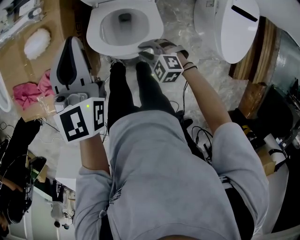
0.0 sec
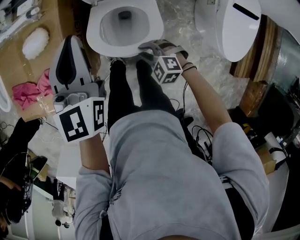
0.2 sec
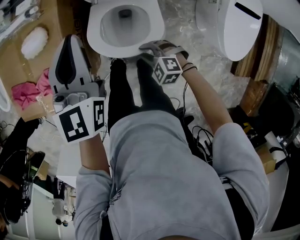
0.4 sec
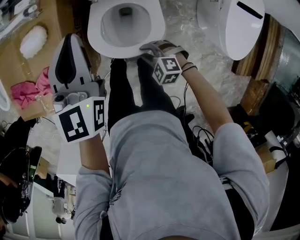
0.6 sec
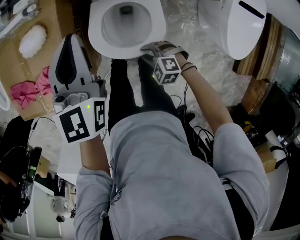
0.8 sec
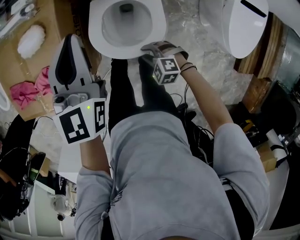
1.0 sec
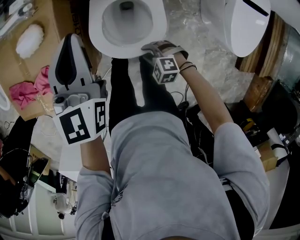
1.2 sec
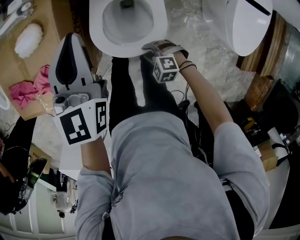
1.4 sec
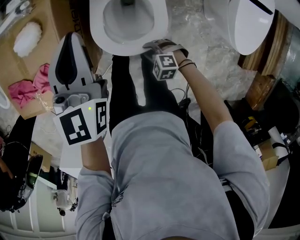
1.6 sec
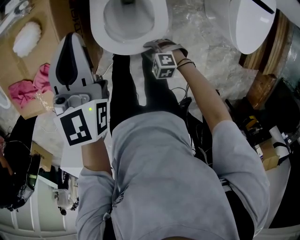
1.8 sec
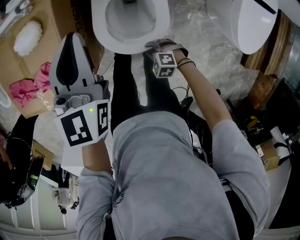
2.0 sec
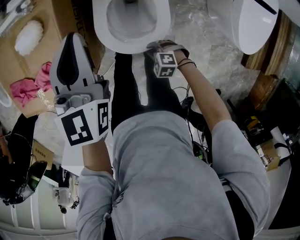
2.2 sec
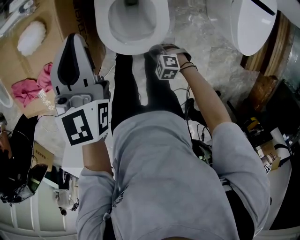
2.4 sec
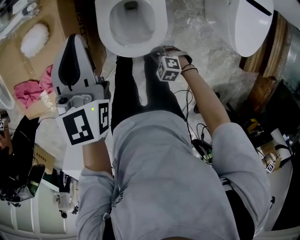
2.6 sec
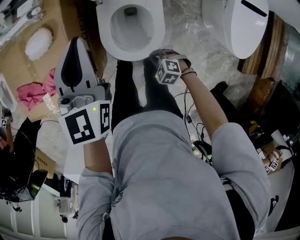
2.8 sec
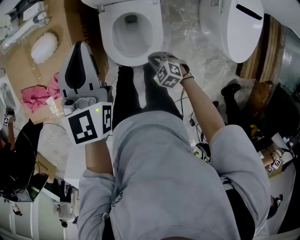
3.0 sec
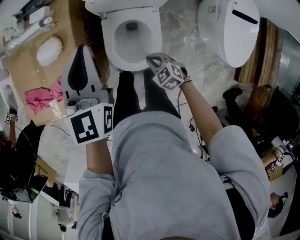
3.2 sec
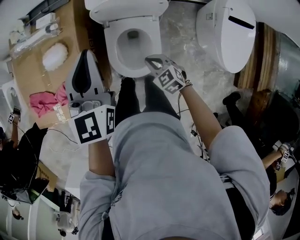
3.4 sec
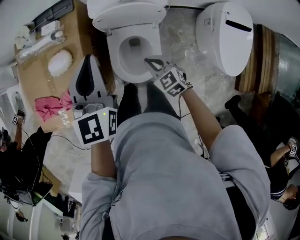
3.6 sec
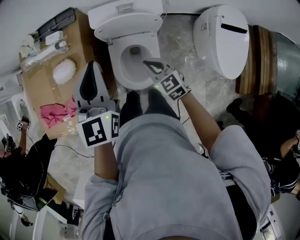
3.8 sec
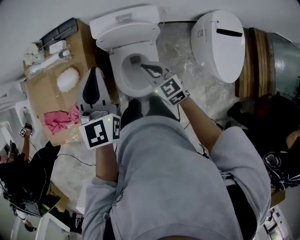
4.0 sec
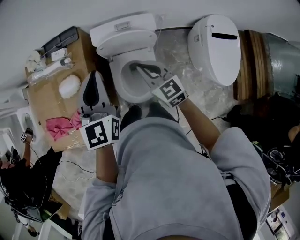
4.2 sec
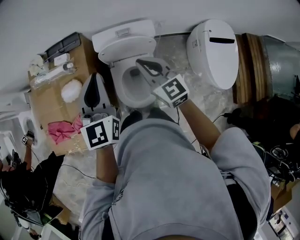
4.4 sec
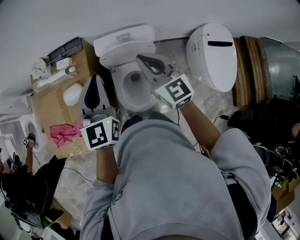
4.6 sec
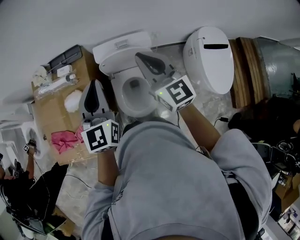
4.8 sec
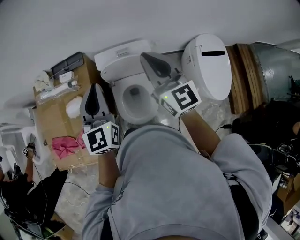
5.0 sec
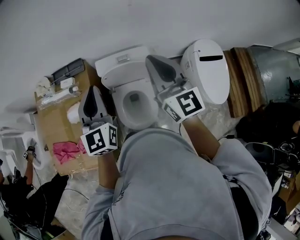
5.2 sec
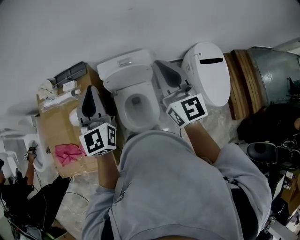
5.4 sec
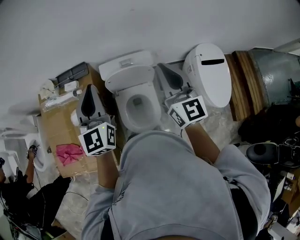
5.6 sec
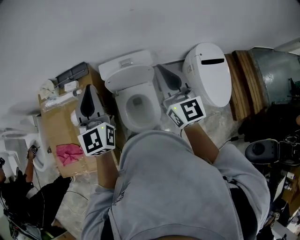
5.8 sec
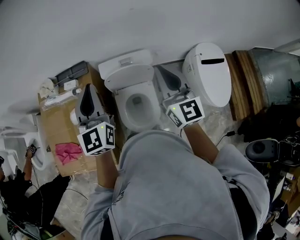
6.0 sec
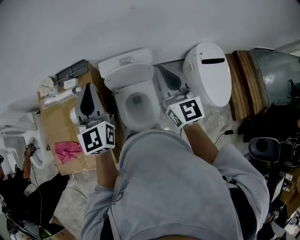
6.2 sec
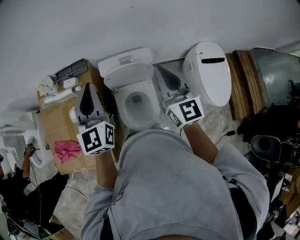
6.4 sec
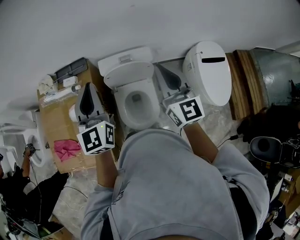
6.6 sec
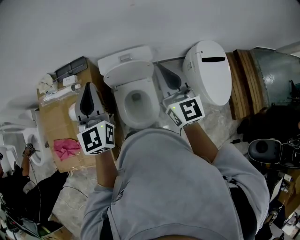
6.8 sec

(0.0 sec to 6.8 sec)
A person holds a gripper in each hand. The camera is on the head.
0.0 sec - 1.4 sec: The right gripper goes about 15 cm downward and backward. Meanwhile the left gripper goes approximately 5 cm downward.
1.4 sec - 2.8 sec: The right gripper closes.
2.8 sec - 4.0 sec: The right gripper shifts some 35 cm upward and forward, and angles its fingers upward, by approximately 40 degrees, while the left gripper goes roughly 15 cm upward.
4.0 sec - 5.4 sec: The left gripper shifts about 10 cm upward. The right gripper travels upward by some 30 cm, and points its fingers roughly 40 degrees further upward.
5.4 sec - 6.8 sec: The grippers move only a little.

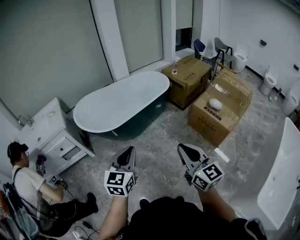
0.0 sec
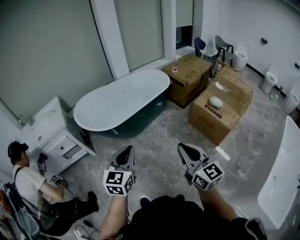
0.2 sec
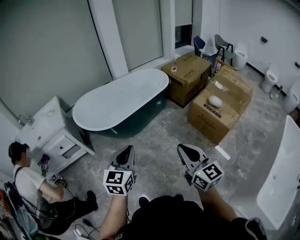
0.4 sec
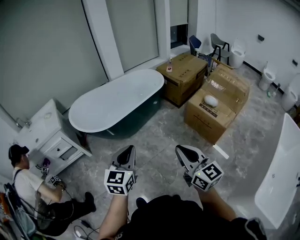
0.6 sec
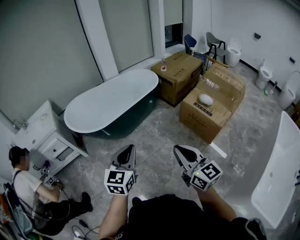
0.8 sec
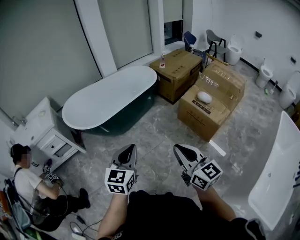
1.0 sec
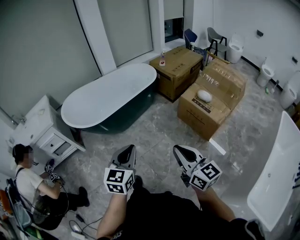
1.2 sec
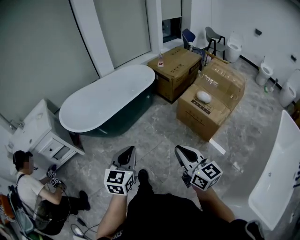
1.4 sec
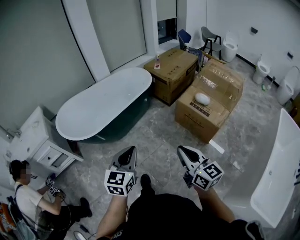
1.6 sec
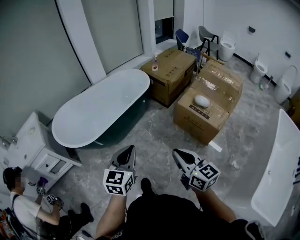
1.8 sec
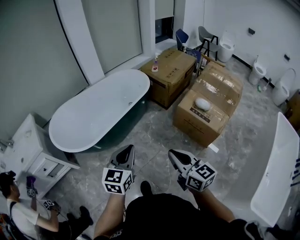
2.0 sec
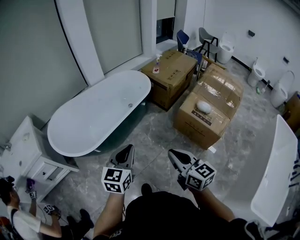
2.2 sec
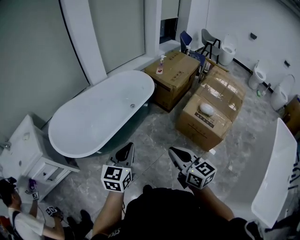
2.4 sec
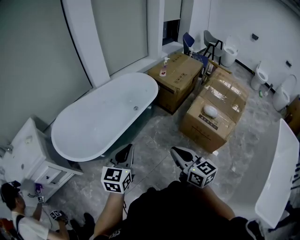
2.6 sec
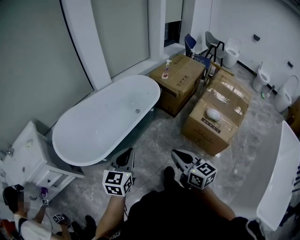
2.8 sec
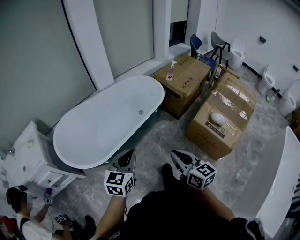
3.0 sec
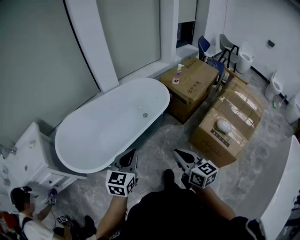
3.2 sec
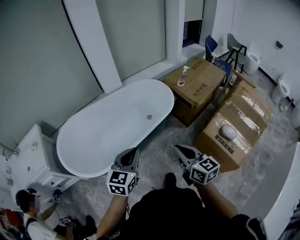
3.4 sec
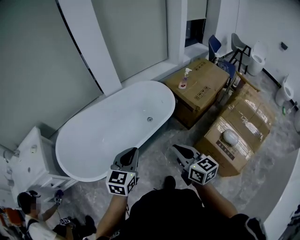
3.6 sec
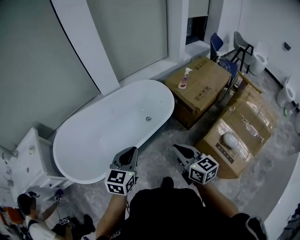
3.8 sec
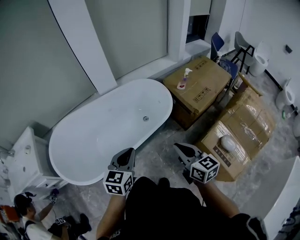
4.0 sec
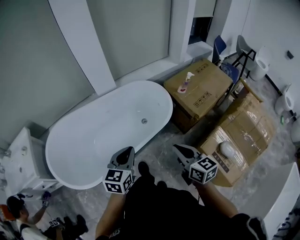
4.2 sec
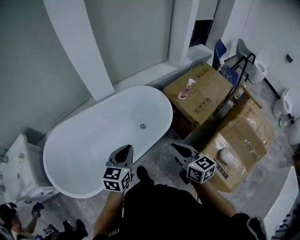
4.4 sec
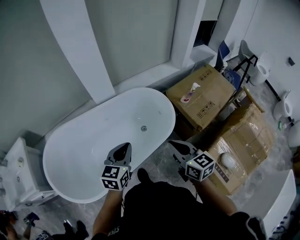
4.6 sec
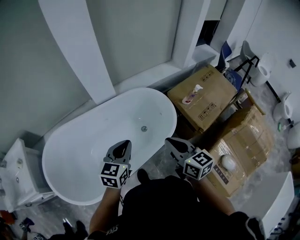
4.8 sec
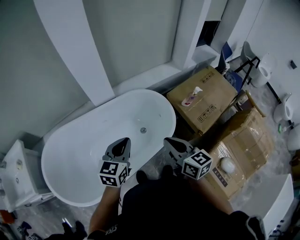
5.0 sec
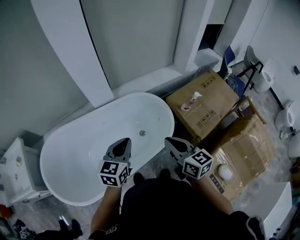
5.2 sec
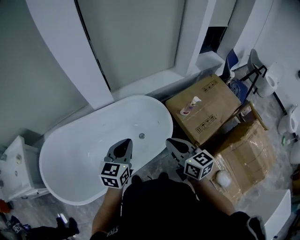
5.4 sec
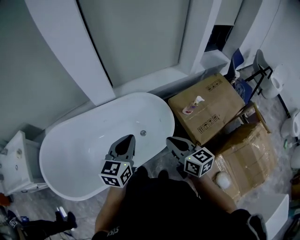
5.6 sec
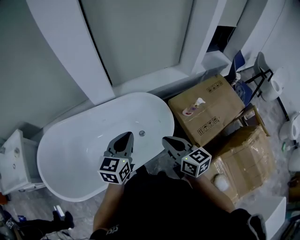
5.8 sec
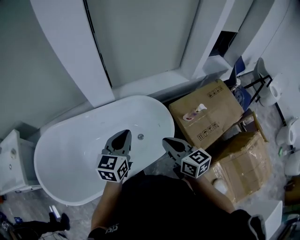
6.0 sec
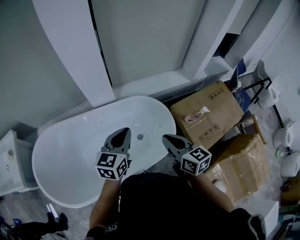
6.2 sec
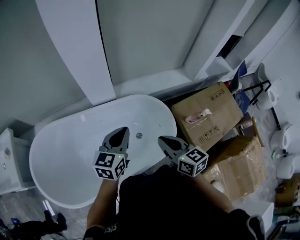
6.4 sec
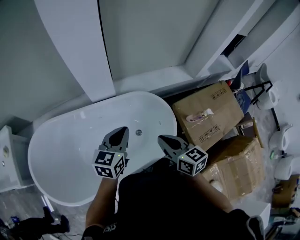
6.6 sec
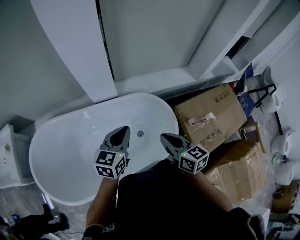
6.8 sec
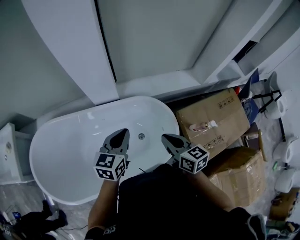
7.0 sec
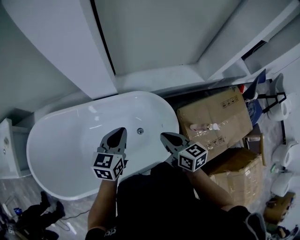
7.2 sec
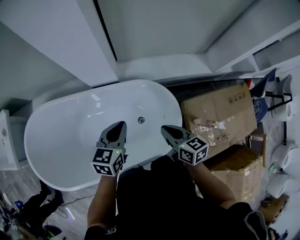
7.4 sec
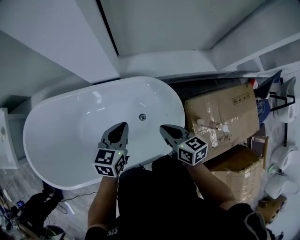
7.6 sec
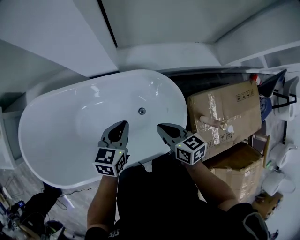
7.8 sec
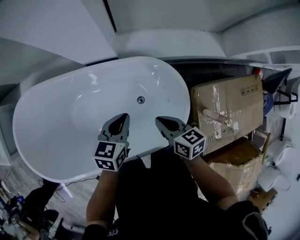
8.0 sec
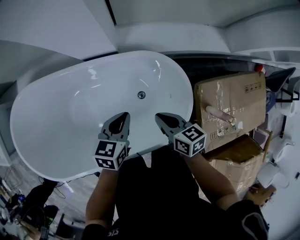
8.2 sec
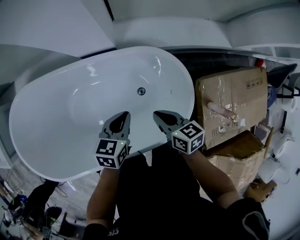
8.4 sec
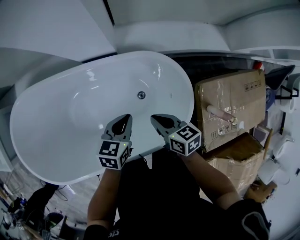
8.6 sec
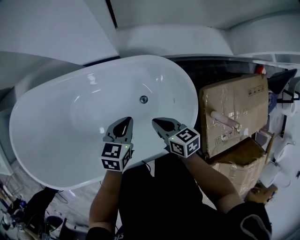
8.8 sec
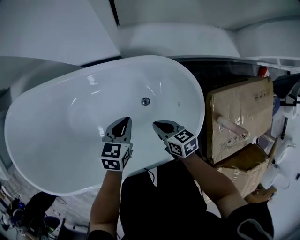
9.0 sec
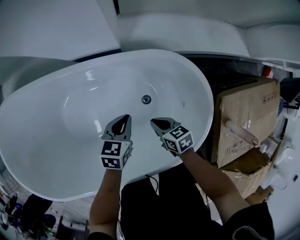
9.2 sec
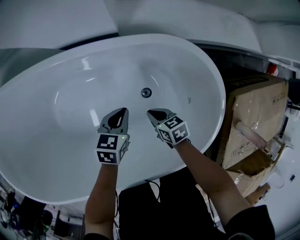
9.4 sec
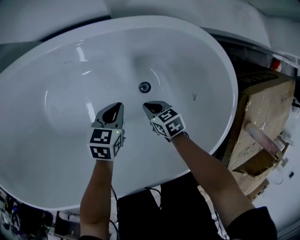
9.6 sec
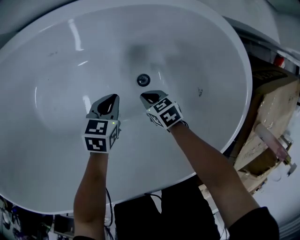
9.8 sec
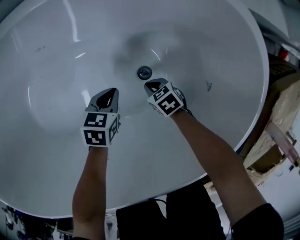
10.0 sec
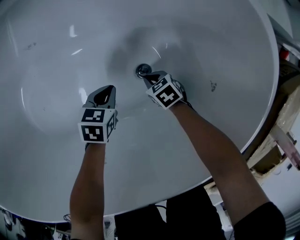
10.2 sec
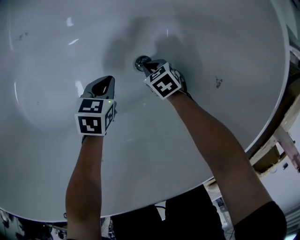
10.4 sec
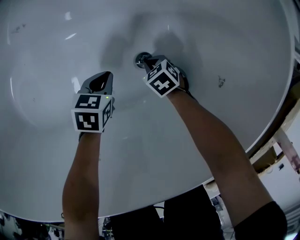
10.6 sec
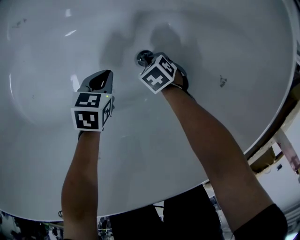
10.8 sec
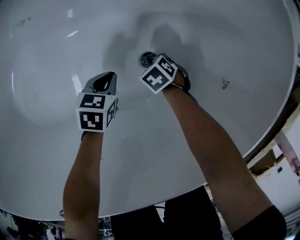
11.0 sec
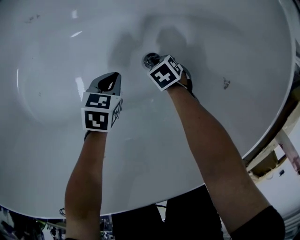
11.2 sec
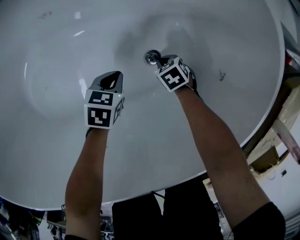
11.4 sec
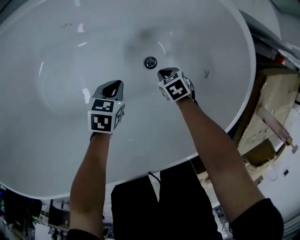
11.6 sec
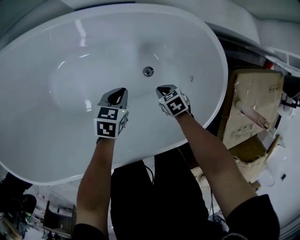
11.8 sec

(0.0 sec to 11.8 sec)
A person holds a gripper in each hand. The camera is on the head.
0.0 sec - 1.4 sec: Both grippers travel together to the right, roughly 15 cm.
1.4 sec - 3.0 sec: The right gripper shifts roughly 35 cm forward and to the left, while the left gripper goes about 35 cm forward.
3.0 sec - 4.4 sec: The two grippers go some 40 cm forward.
4.4 sec - 6.0 sec: The two grippers go about 25 cm forward.
6.0 sec - 7.4 sec: The grippers both shift forward and downward by roughly 25 cm. The right gripper rotates approximately 20 degrees.
7.4 sec - 8.8 sec: Both grippers travel together downward, approximately 20 cm.
8.8 sec - 10.4 sec: Both grippers travel together downward, roughly 50 cm. The right gripper angles its fingers downward, by about 30 degrees.
10.4 sec - 11.8 sec: The two grippers go roughly 25 cm upward.

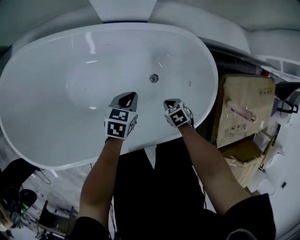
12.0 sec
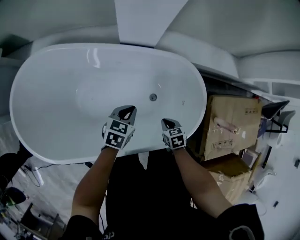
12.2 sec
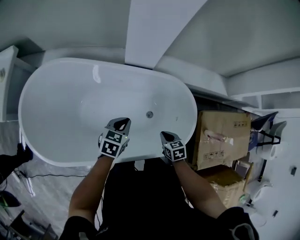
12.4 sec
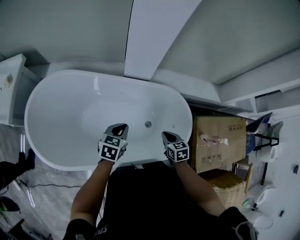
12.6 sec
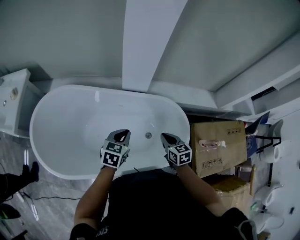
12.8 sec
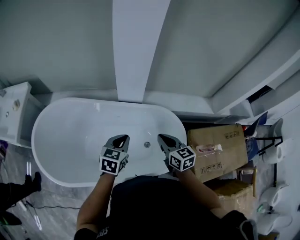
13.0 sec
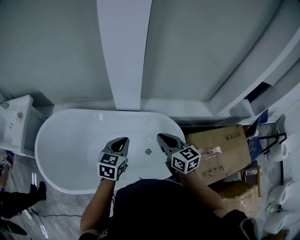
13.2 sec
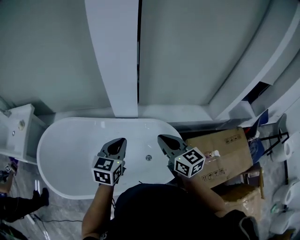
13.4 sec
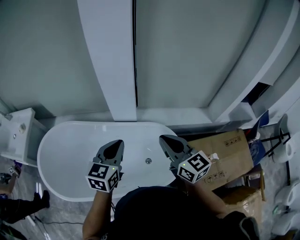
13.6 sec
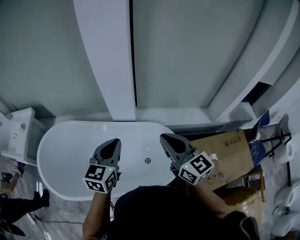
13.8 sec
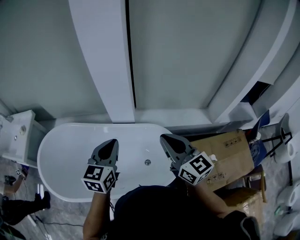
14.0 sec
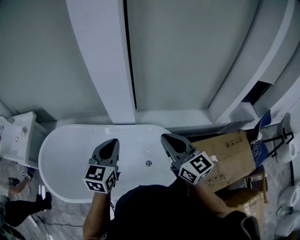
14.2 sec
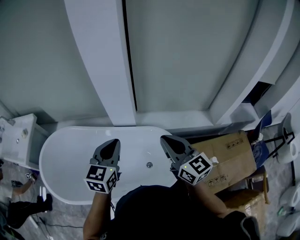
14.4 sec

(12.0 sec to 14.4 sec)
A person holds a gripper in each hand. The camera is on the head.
12.0 sec - 13.2 sec: The two grippers go roughly 50 cm upward. The right gripper points its fingers roughly 60 degrees further upward, while the left gripper turns by approximately 30 degrees.
13.2 sec - 14.4 sec: Both grippers travel together upward and to the right, approximately 15 cm.

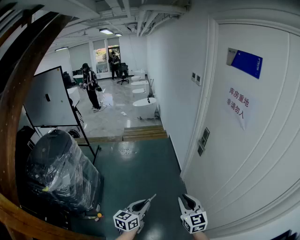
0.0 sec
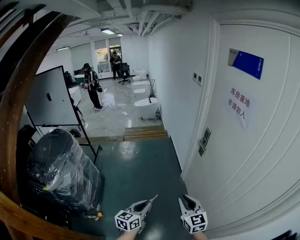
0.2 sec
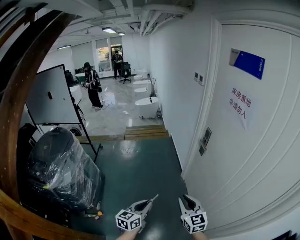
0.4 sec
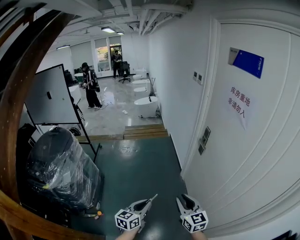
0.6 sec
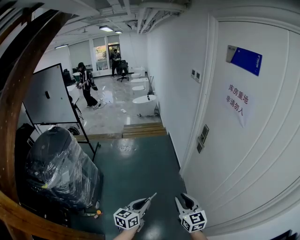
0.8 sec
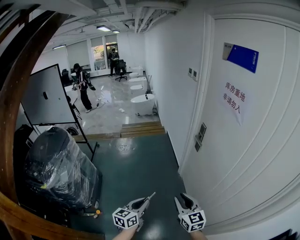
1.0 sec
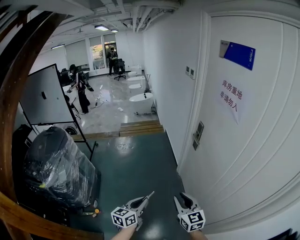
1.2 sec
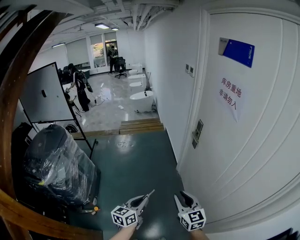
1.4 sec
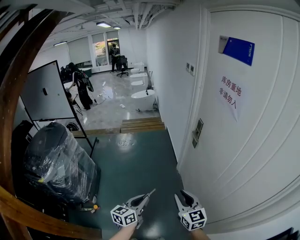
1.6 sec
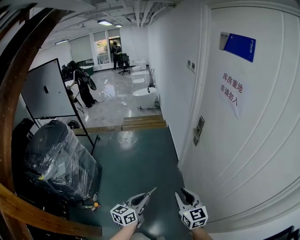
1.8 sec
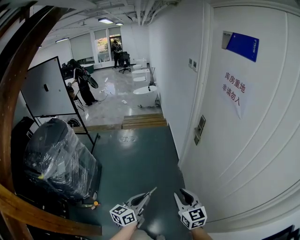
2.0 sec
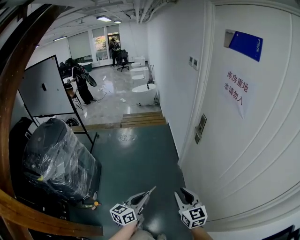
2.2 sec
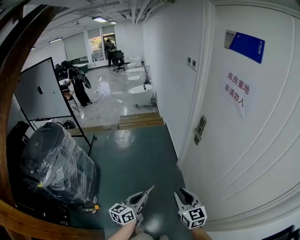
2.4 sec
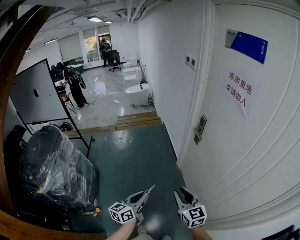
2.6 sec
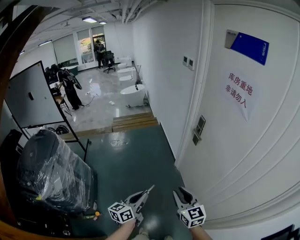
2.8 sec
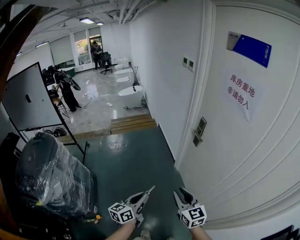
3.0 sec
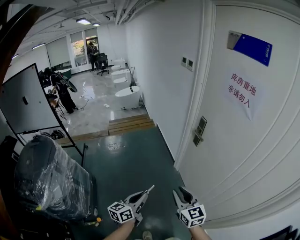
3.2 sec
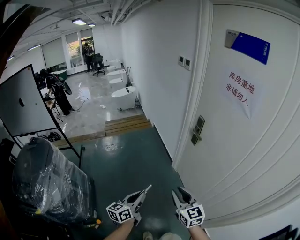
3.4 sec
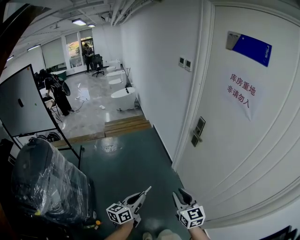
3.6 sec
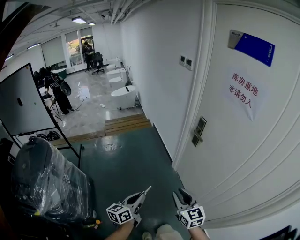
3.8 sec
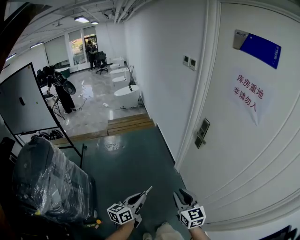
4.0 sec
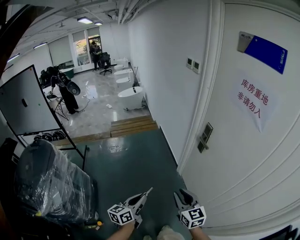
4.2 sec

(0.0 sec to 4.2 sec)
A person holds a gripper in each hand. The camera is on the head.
0.0 sec - 1.4 sec: The right gripper moves roughly 5 cm, while the left gripper heads to the right, covering some 5 cm.
1.4 sec - 2.8 sec: Both grippers travel together forward and to the left, about 10 cm.
2.8 sec - 4.2 sec: Both grippers travel together forward and to the left, approximately 10 cm.
